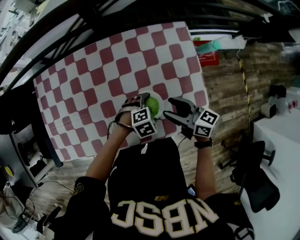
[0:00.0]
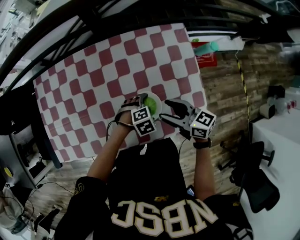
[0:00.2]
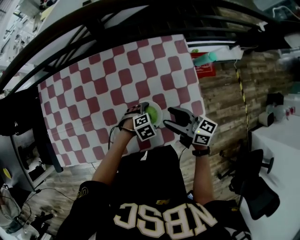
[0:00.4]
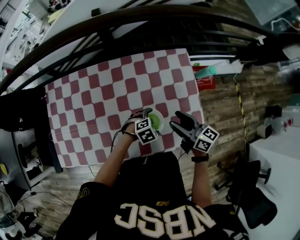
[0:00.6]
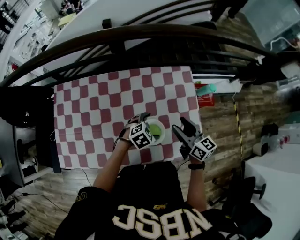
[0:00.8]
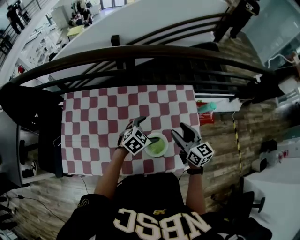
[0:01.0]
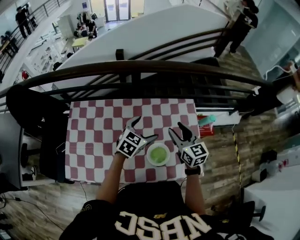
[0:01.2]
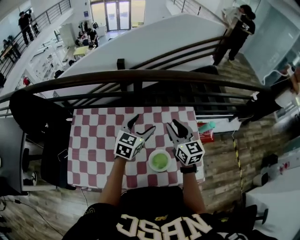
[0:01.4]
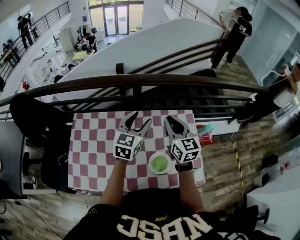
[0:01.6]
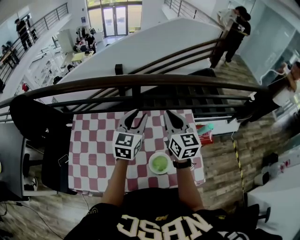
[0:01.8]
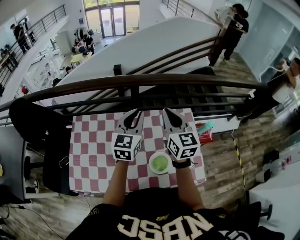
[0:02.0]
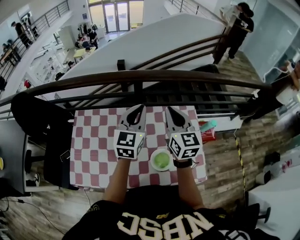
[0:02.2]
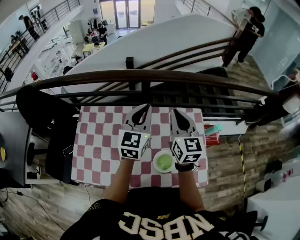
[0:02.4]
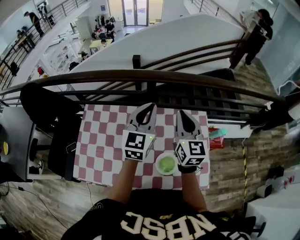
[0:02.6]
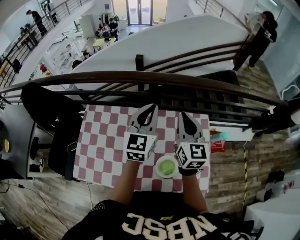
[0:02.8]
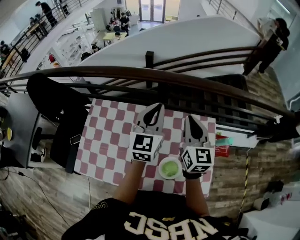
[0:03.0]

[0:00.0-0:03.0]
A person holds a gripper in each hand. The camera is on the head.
0:00.0 to 0:01.6: The right gripper goes about 25 cm upward, turns by roughly 40 degrees, and closes its fingers; the left gripper moves upward, some 35 cm, tilts its fingers some 50 degrees upward, and closes up.
0:01.6 to 0:03.0: The left gripper travels upward and forward by approximately 10 cm, rotates approximately 20 degrees, and closes, while the right gripper shifts by approximately 5 cm.

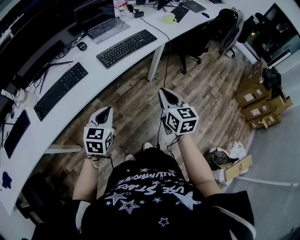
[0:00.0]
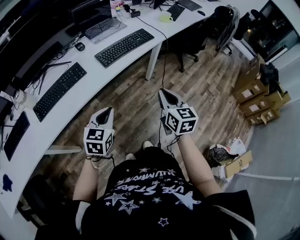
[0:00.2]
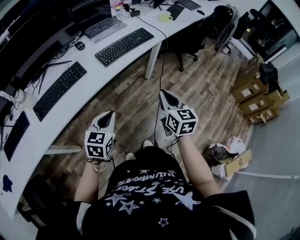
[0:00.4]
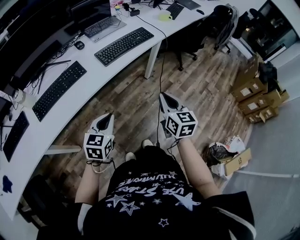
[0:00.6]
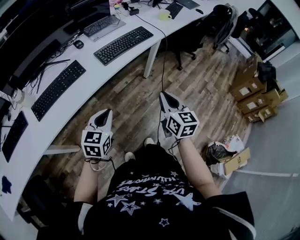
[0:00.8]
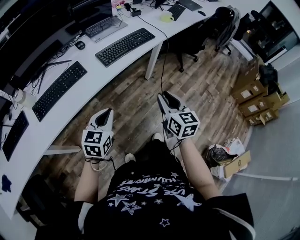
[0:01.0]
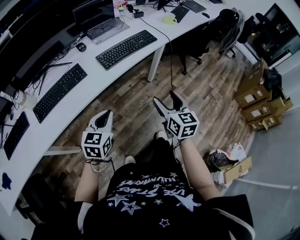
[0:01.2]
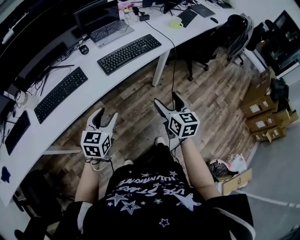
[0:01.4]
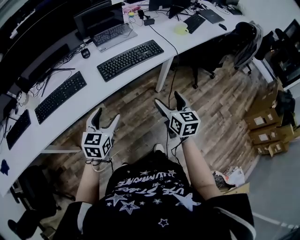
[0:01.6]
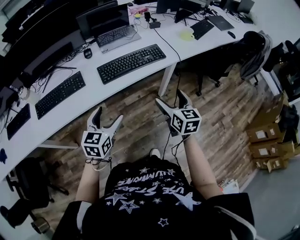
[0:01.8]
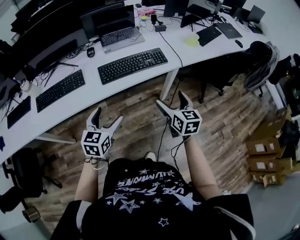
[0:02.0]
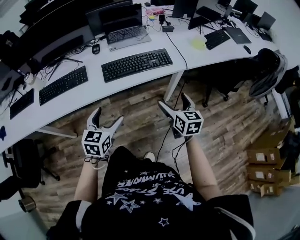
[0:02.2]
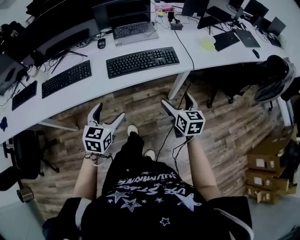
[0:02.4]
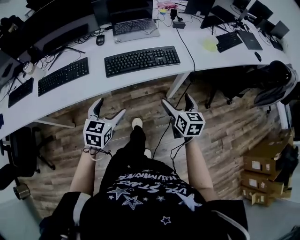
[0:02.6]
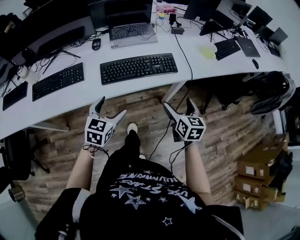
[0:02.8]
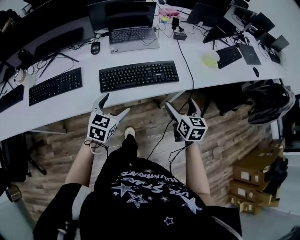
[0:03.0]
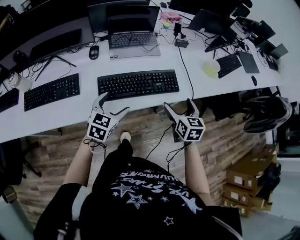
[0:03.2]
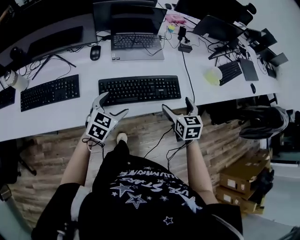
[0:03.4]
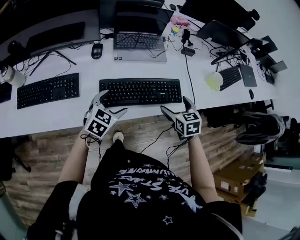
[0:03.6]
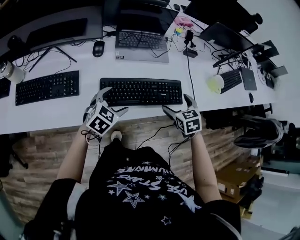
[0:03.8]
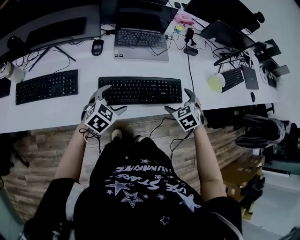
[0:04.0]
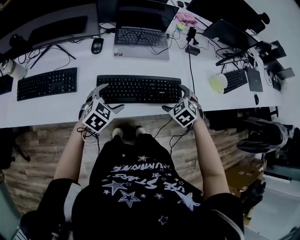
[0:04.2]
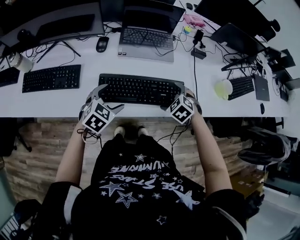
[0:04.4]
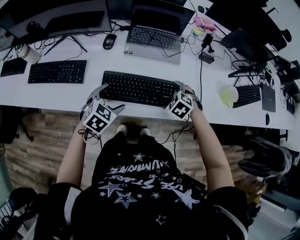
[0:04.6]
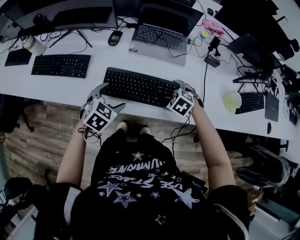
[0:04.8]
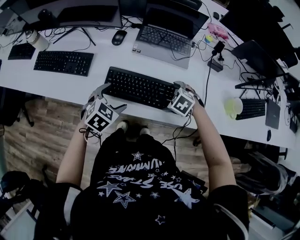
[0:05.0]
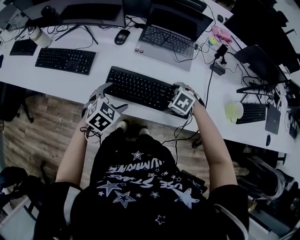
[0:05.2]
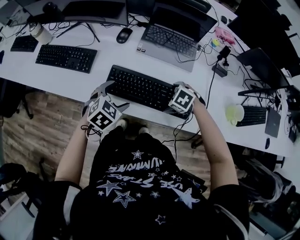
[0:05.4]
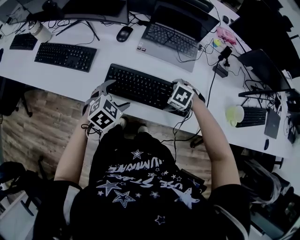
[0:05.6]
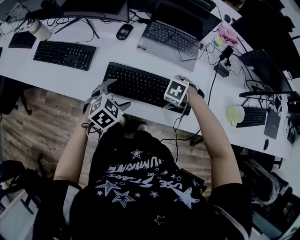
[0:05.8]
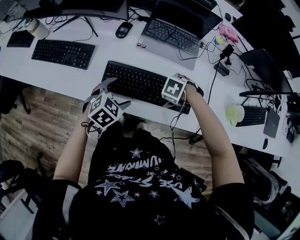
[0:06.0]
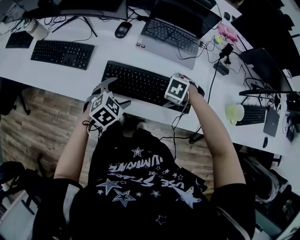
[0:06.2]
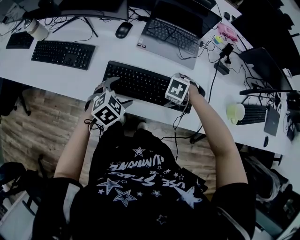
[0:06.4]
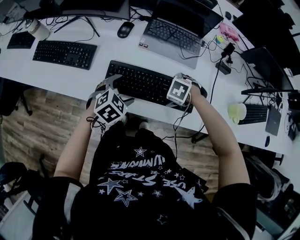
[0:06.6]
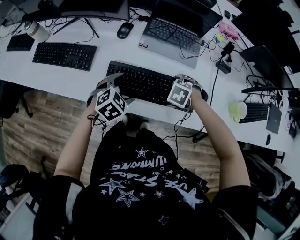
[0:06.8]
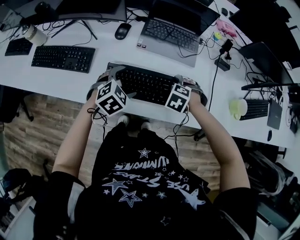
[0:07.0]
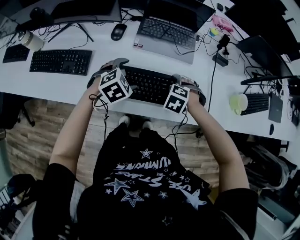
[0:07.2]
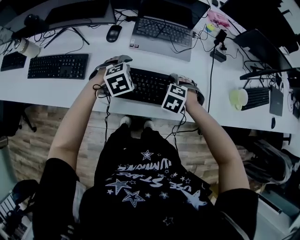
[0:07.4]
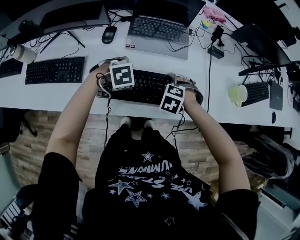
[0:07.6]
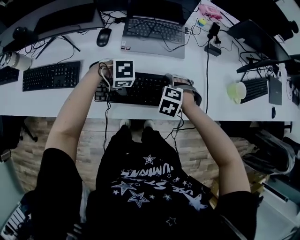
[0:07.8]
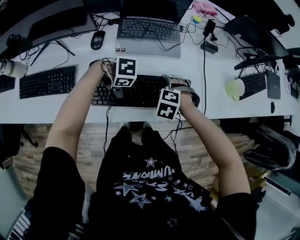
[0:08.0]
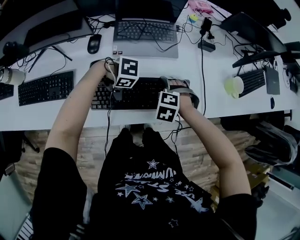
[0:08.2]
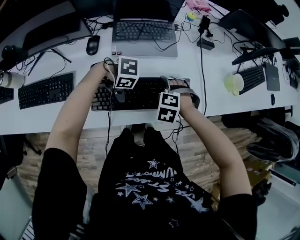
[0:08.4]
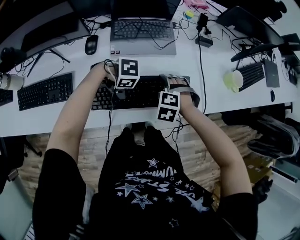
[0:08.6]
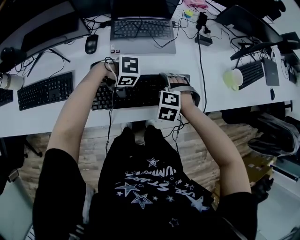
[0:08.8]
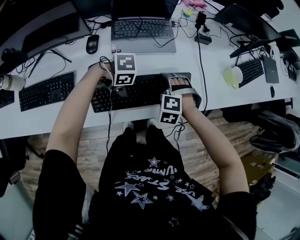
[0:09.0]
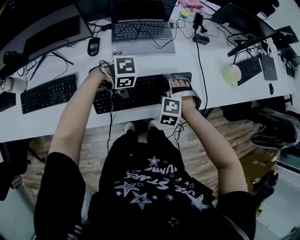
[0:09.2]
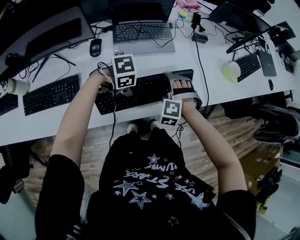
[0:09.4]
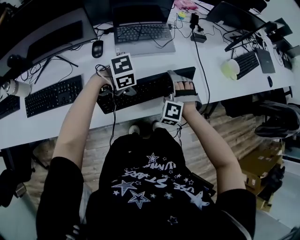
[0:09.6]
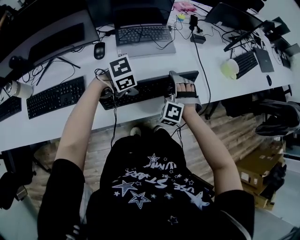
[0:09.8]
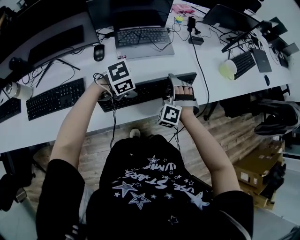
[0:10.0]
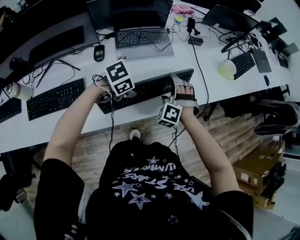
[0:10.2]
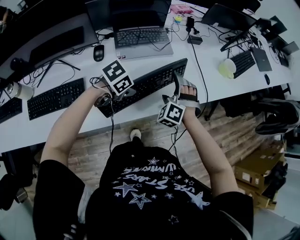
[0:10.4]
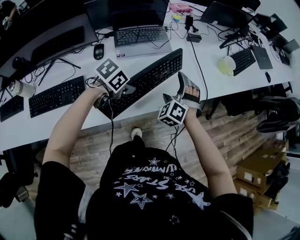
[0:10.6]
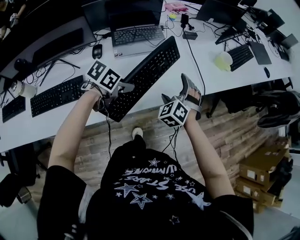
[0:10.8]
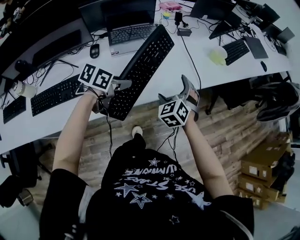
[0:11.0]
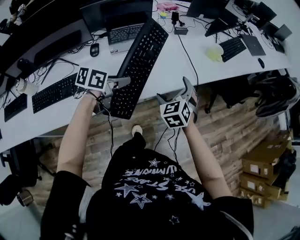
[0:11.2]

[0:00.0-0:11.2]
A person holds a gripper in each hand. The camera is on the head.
0:00.0 to 0:01.6: The two grippers go roughly 10 cm forward and to the right. The left gripper opens its fingers. The right gripper opens.
0:01.6 to 0:03.2: Both grippers travel together forward, about 25 cm.
0:03.2 to 0:04.8: The right gripper moves about 20 cm, and angles its fingers downward, by about 40 degrees, while the left gripper shifts by approximately 5 cm, and swivels approximately 20 degrees.
0:04.8 to 0:06.4: The right gripper changes its angle by roughly 20 degrees.
0:06.4 to 0:08.0: The left gripper shifts by roughly 5 cm, and swivels about 70 degrees.
0:08.0 to 0:09.6: The left gripper moves upward, roughly 5 cm, and closes its fingers; the right gripper angles its fingers upward, by some 40 degrees.
0:09.6 to 0:11.2: The right gripper ends up roughly 15 cm from where it was, and rotates around the line of its fingers by roughly 60 degrees, clockwise from behind. The left gripper shifts about 10 cm upward, and turns by about 60 degrees.

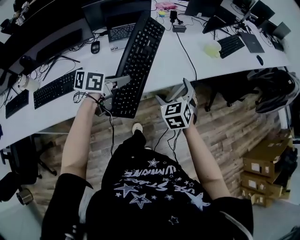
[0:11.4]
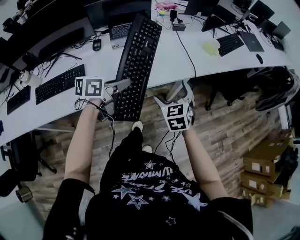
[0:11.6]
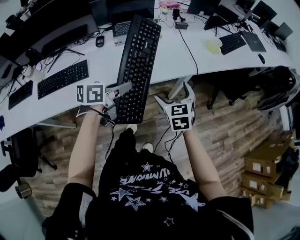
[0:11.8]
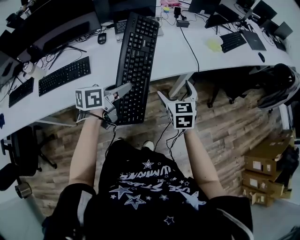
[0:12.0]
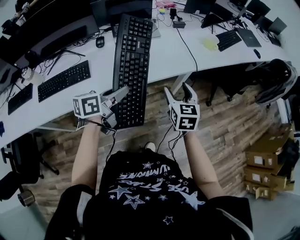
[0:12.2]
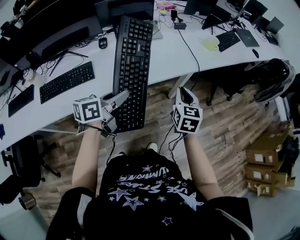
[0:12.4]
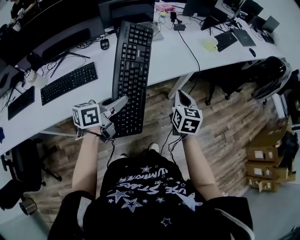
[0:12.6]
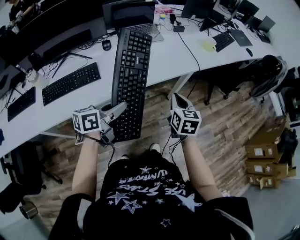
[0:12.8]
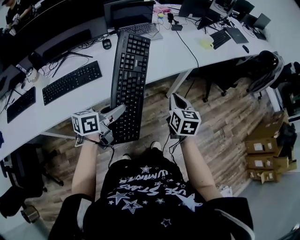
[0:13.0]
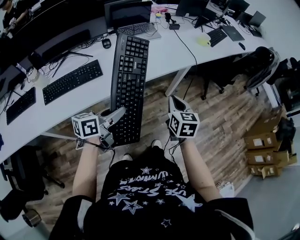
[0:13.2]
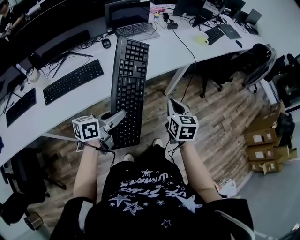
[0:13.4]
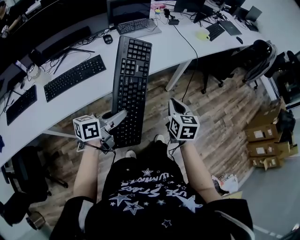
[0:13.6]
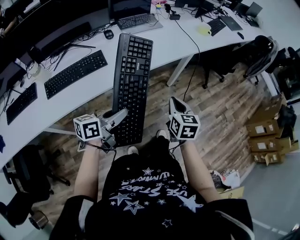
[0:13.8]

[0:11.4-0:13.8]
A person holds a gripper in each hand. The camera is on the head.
0:11.4 to 0:12.6: The right gripper moves backward, roughly 10 cm, turns by some 40 degrees, and closes its fingers. Meanwhile the left gripper heads backward, covering about 20 cm.
0:12.6 to 0:13.8: The two grippers go some 20 cm backward.

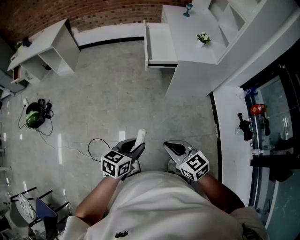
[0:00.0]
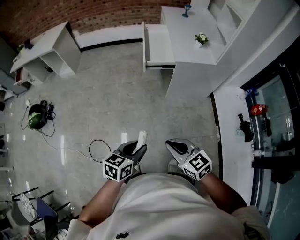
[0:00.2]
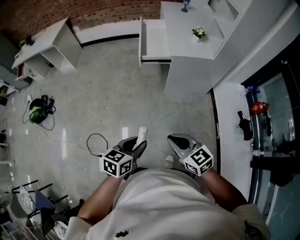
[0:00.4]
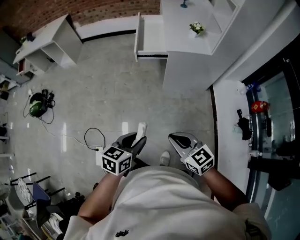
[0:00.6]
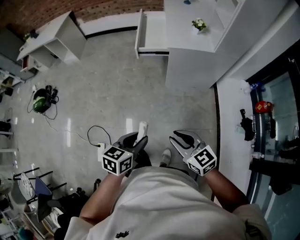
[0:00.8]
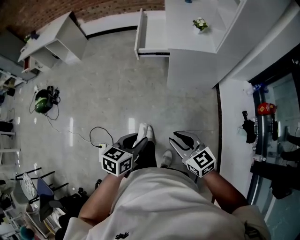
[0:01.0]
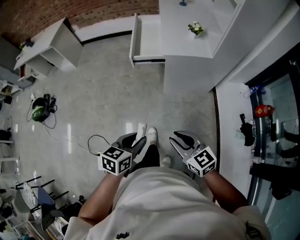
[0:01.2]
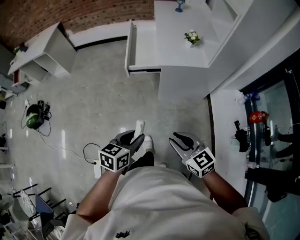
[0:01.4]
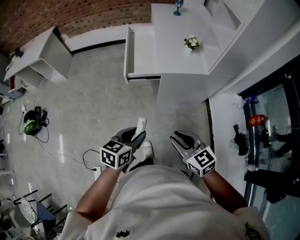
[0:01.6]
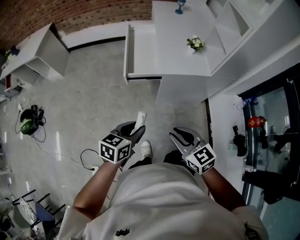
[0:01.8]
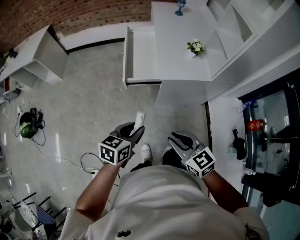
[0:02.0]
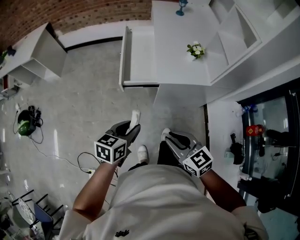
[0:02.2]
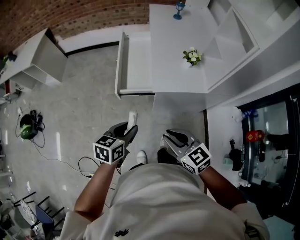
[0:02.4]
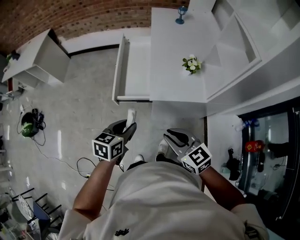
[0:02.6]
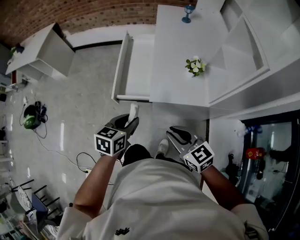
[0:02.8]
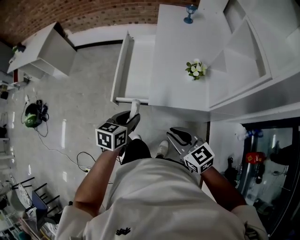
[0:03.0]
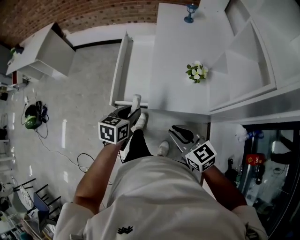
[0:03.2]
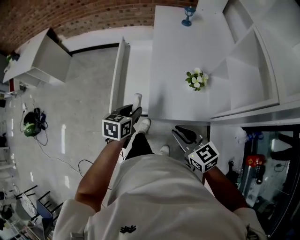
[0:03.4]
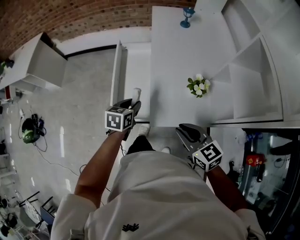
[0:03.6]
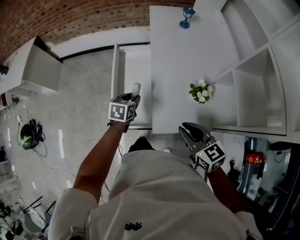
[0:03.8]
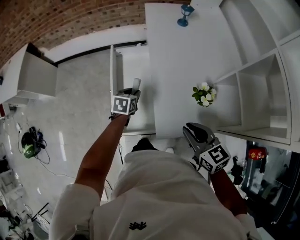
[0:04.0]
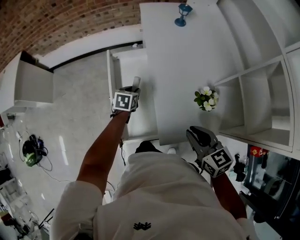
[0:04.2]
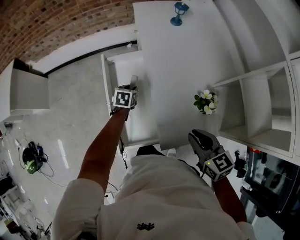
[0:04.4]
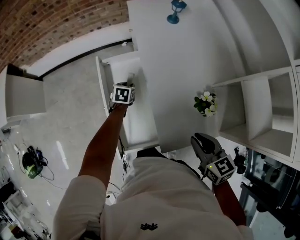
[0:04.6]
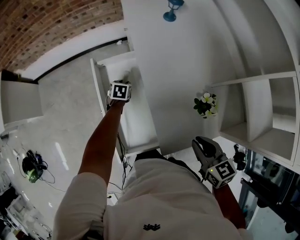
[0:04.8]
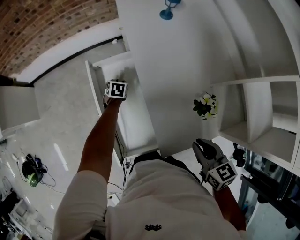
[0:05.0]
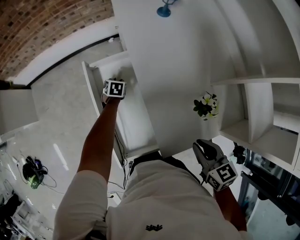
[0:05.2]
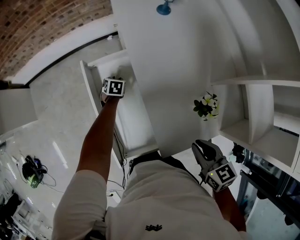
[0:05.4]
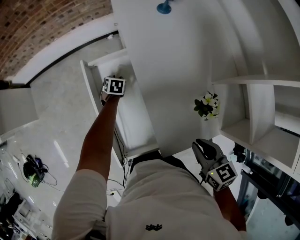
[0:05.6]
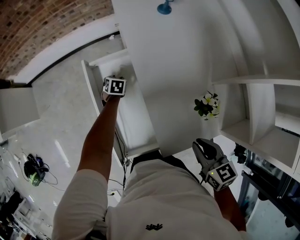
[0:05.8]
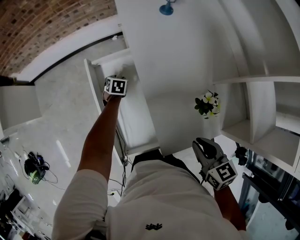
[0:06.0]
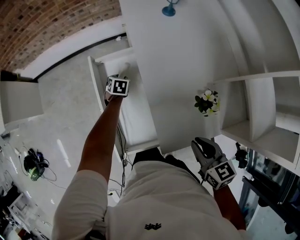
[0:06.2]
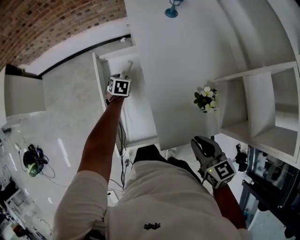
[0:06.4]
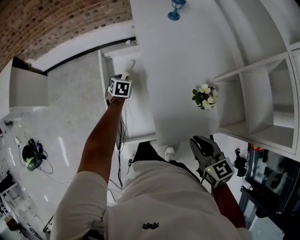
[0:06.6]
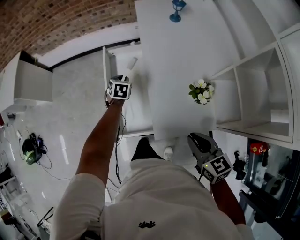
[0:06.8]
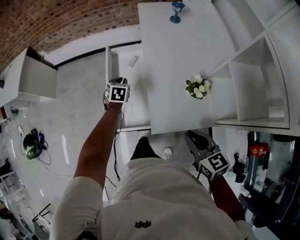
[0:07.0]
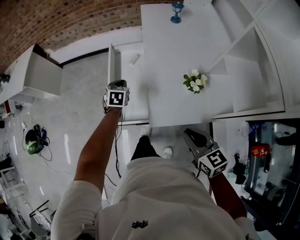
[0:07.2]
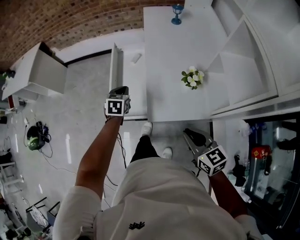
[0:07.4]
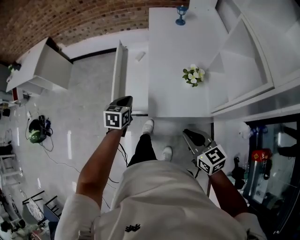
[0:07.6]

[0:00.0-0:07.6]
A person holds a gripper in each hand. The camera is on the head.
0:00.0 to 0:01.6: The right gripper is displaced to the right and forward by some 30 cm, and opens up. Meanwhile the left gripper travels forward and to the right by roughly 25 cm.
0:01.6 to 0:03.0: The left gripper is displaced forward by some 30 cm, while the right gripper is displaced forward and to the right by some 30 cm.
0:03.0 to 0:04.6: The left gripper travels forward and downward by about 50 cm, and swivels approximately 20 degrees; the right gripper travels forward by about 25 cm, and changes its angle by about 30 degrees.
0:04.6 to 0:06.0: The left gripper heads downward and forward, covering approximately 10 cm.
0:06.0 to 0:07.6: The left gripper travels backward and upward by about 50 cm, swivels approximately 30 degrees, and closes. Meanwhile the right gripper moves backward, some 20 cm, and turns by some 30 degrees.
